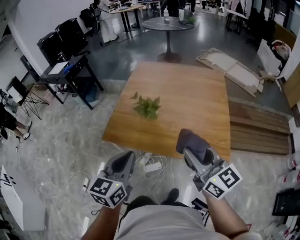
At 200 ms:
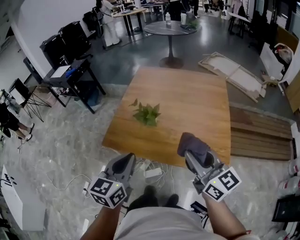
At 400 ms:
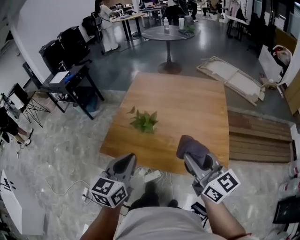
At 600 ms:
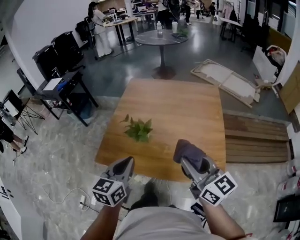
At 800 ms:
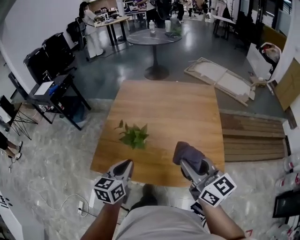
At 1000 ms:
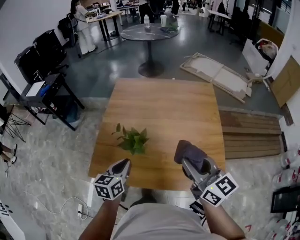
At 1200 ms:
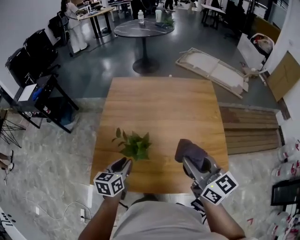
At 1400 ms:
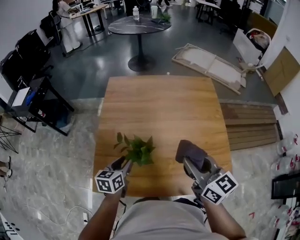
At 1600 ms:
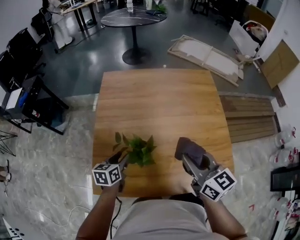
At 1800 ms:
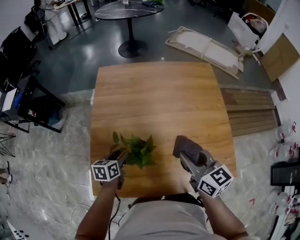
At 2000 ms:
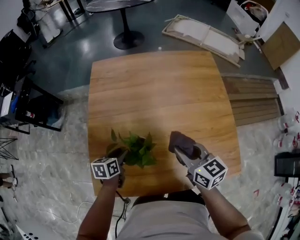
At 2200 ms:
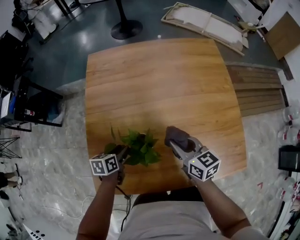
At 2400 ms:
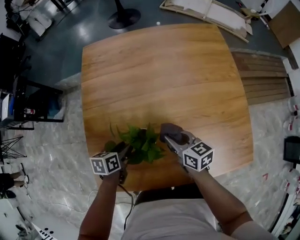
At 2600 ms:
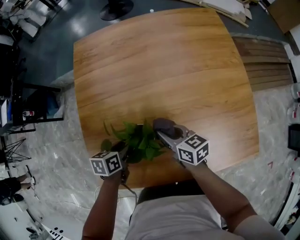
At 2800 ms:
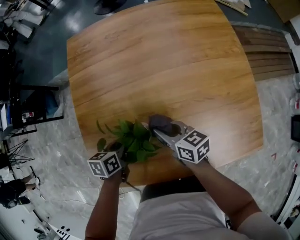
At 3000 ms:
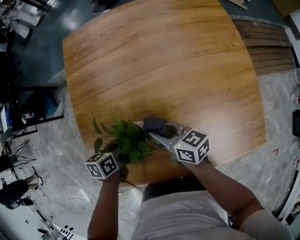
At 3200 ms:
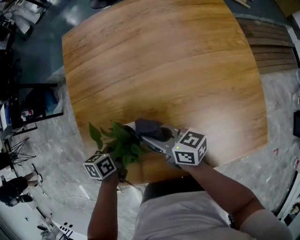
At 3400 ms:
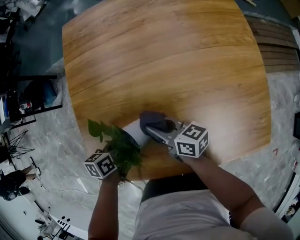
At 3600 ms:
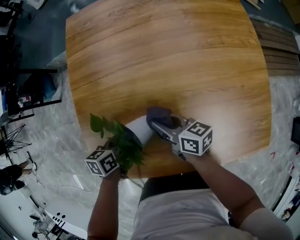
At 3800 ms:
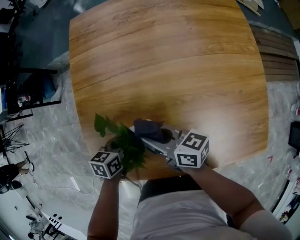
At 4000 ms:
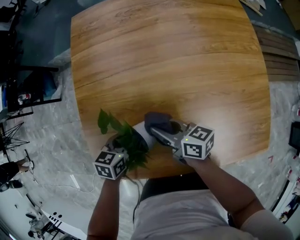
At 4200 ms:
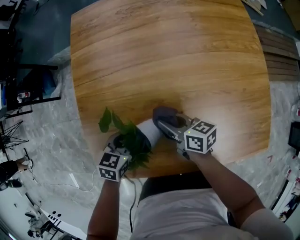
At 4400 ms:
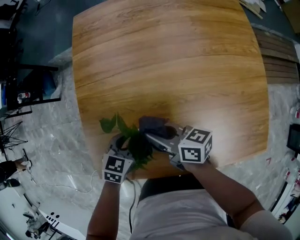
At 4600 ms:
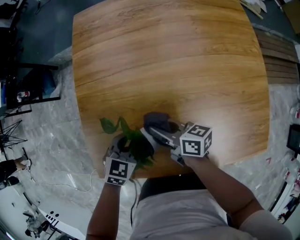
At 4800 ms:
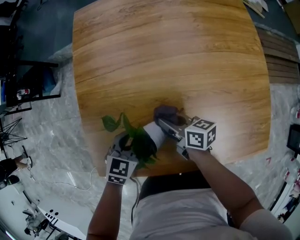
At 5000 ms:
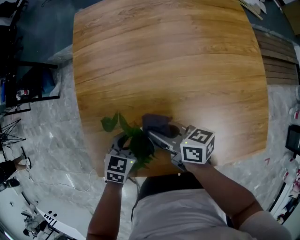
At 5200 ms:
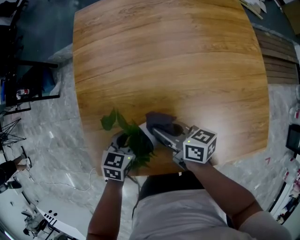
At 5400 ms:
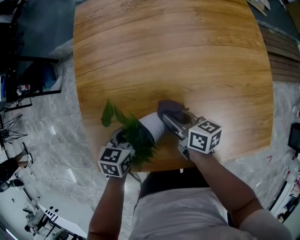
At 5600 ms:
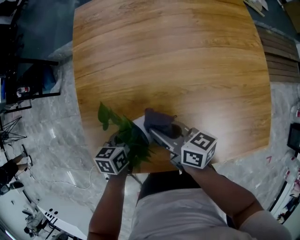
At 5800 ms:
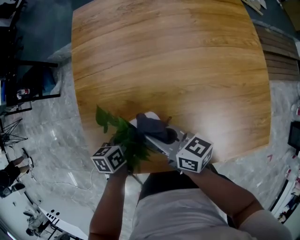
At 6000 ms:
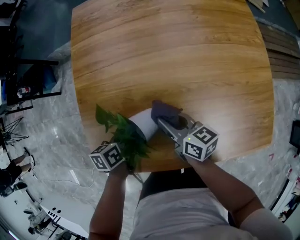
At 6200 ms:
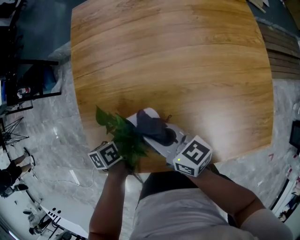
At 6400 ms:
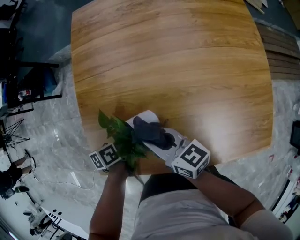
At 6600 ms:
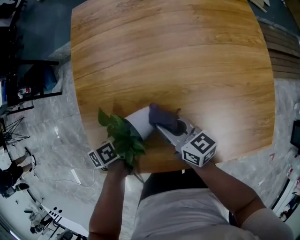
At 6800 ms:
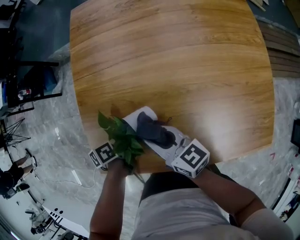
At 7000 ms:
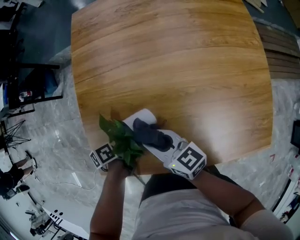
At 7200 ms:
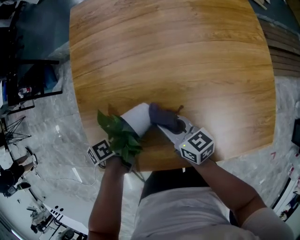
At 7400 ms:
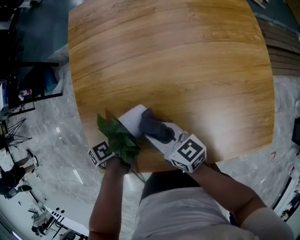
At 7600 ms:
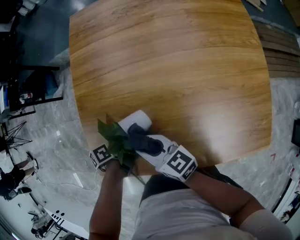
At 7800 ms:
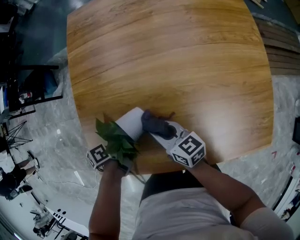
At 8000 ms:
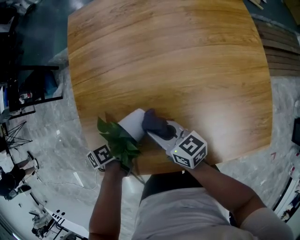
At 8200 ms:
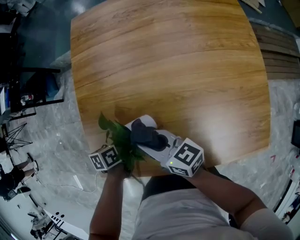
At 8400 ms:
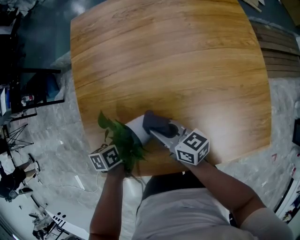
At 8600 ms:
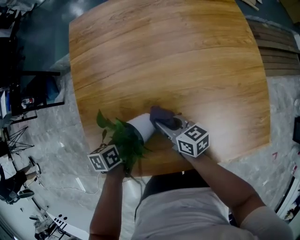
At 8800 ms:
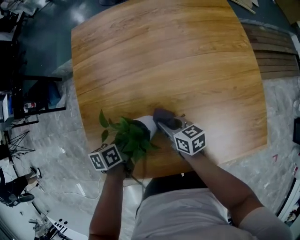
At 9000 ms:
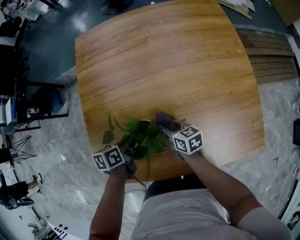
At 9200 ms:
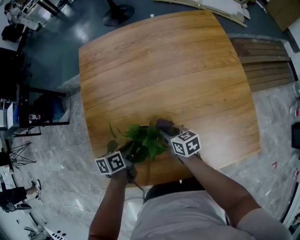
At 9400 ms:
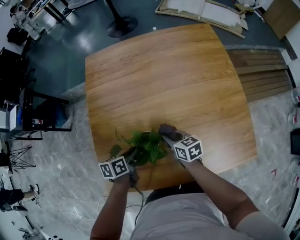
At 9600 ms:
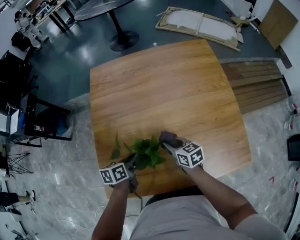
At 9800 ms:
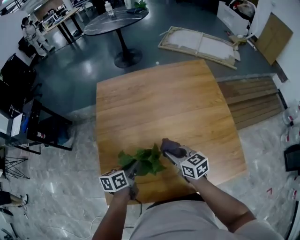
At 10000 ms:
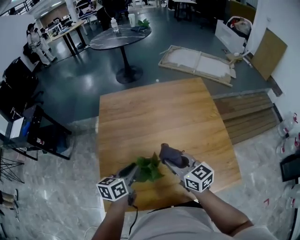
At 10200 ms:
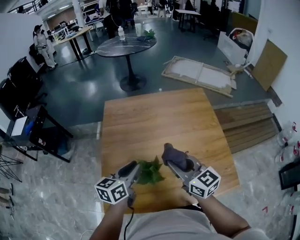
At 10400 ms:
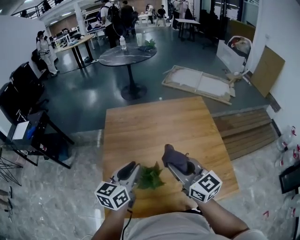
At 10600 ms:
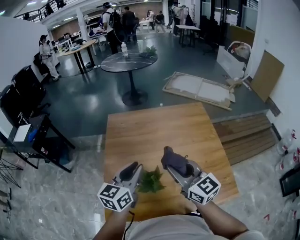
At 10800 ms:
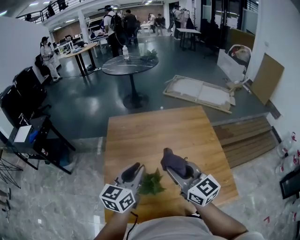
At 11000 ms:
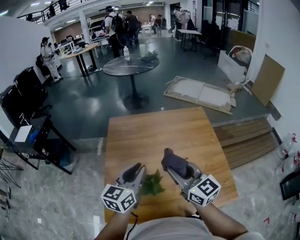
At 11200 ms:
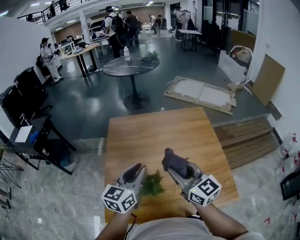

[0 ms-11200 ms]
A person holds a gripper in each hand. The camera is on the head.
0 ms to 1600 ms: The left gripper travels forward and downward by roughly 50 cm, rotates approximately 30 degrees, and opens, while the right gripper moves forward, some 35 cm, and turns by some 20 degrees.
1600 ms to 3200 ms: The right gripper travels downward by about 30 cm, and turns by approximately 40 degrees; the left gripper goes approximately 20 cm downward, turns by approximately 20 degrees, and closes its fingers.
3200 ms to 4800 ms: The left gripper rotates around the line of its fingers by roughly 40 degrees, clockwise from behind. Meanwhile the right gripper moves up and down over approximately 10 cm, changing direction 4 times.
4800 ms to 6400 ms: The right gripper swings up and down, roughly 10 cm each way, with 4 reversals, and changes its angle by approximately 20 degrees; the left gripper goes some 5 cm downward, and rotates around the line of its fingers by some 60 degrees, counterclockwise from behind.
6400 ms to 8000 ms: The right gripper swings up and down, roughly 5 cm each way, with 4 reversals.
8000 ms to 9600 ms: The left gripper heads upward, covering approximately 15 cm, and rotates about 30 degrees; the right gripper is displaced to the right and upward by some 10 cm.
9600 ms to 11200 ms: The two grippers go some 35 cm upward. The right gripper swivels approximately 40 degrees, while the left gripper tilts its fingers some 30 degrees upward.

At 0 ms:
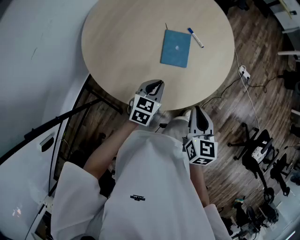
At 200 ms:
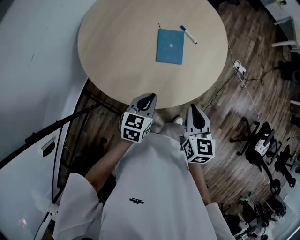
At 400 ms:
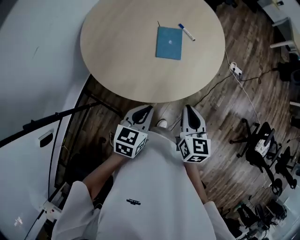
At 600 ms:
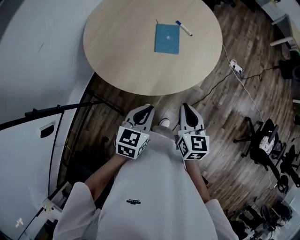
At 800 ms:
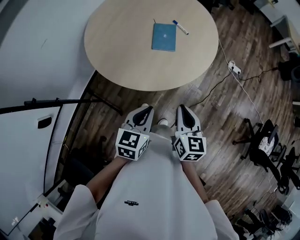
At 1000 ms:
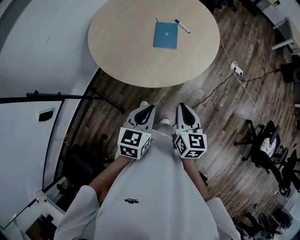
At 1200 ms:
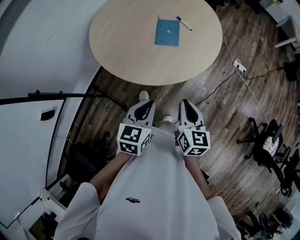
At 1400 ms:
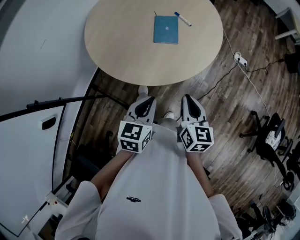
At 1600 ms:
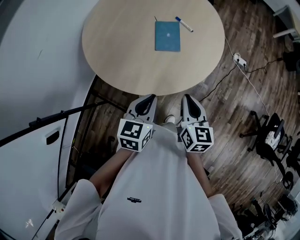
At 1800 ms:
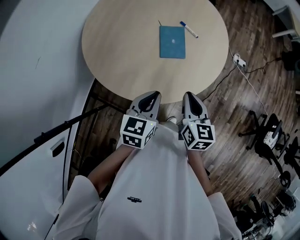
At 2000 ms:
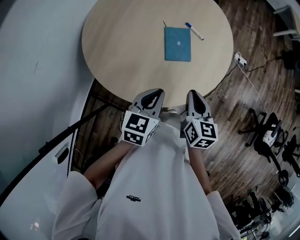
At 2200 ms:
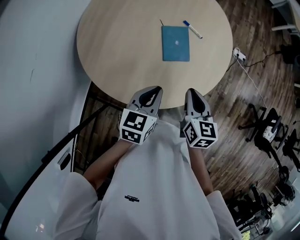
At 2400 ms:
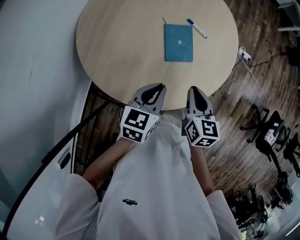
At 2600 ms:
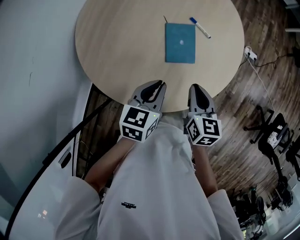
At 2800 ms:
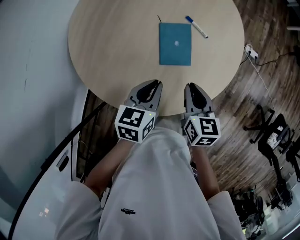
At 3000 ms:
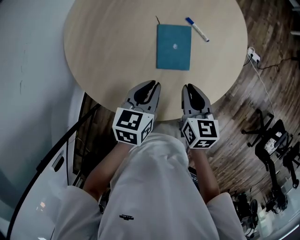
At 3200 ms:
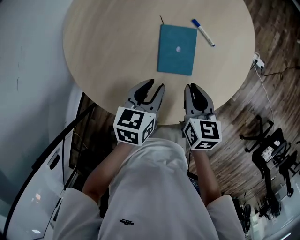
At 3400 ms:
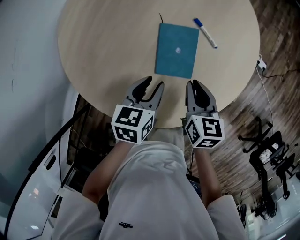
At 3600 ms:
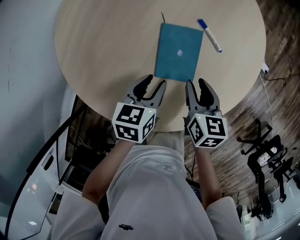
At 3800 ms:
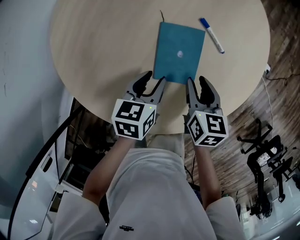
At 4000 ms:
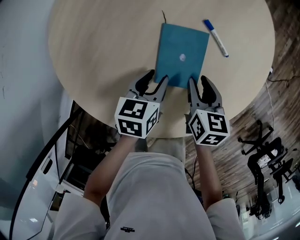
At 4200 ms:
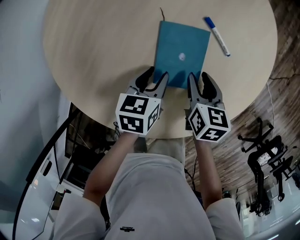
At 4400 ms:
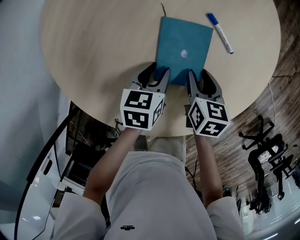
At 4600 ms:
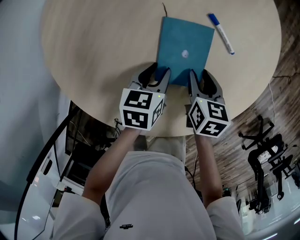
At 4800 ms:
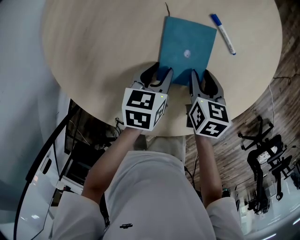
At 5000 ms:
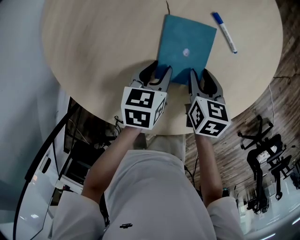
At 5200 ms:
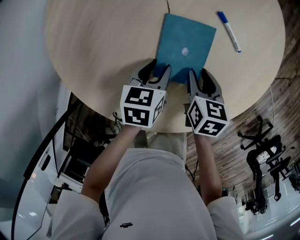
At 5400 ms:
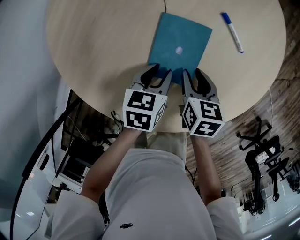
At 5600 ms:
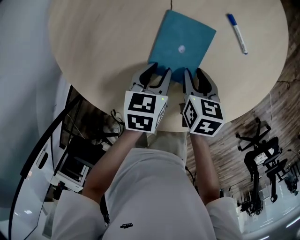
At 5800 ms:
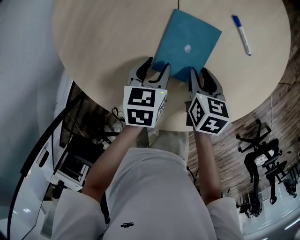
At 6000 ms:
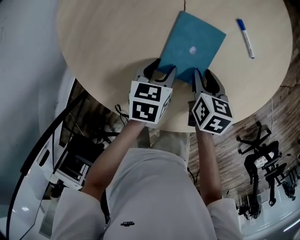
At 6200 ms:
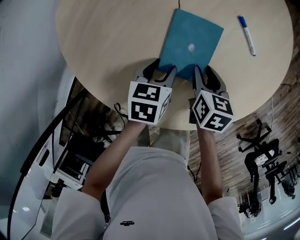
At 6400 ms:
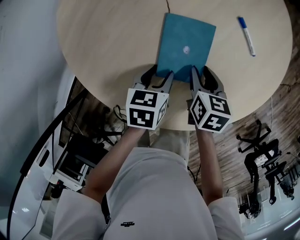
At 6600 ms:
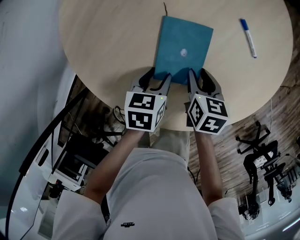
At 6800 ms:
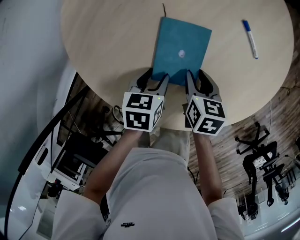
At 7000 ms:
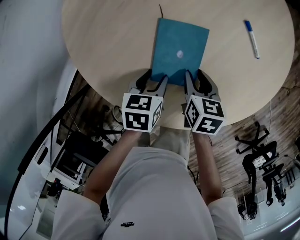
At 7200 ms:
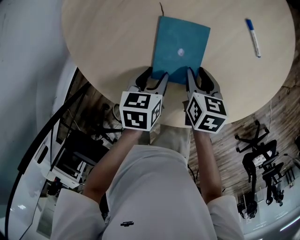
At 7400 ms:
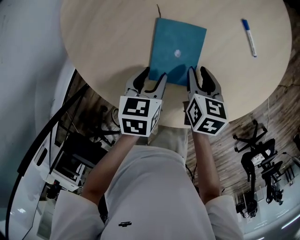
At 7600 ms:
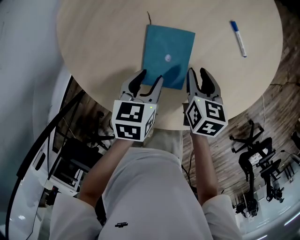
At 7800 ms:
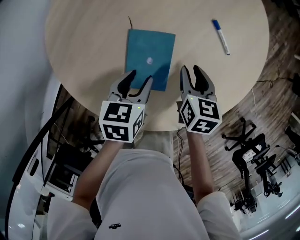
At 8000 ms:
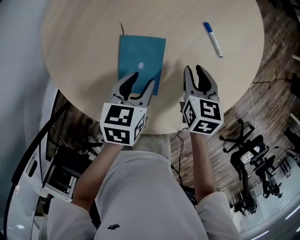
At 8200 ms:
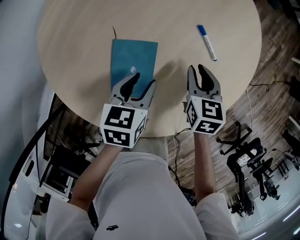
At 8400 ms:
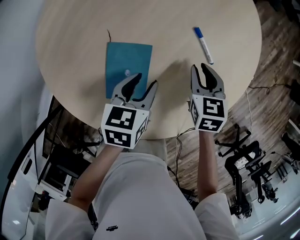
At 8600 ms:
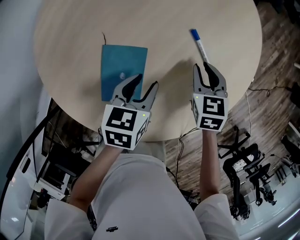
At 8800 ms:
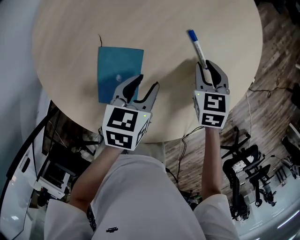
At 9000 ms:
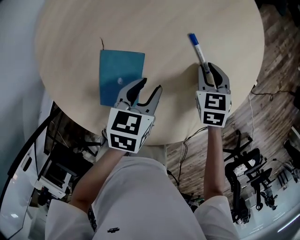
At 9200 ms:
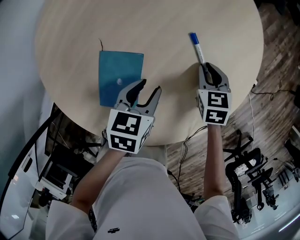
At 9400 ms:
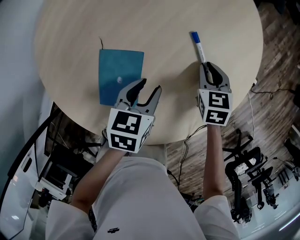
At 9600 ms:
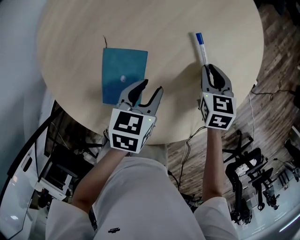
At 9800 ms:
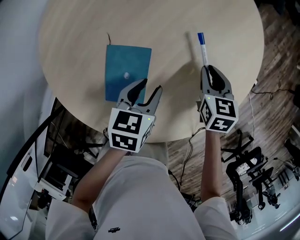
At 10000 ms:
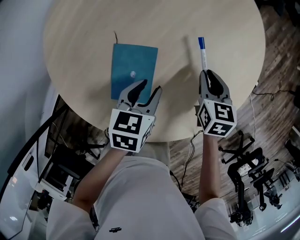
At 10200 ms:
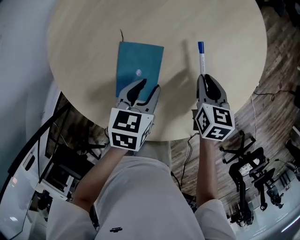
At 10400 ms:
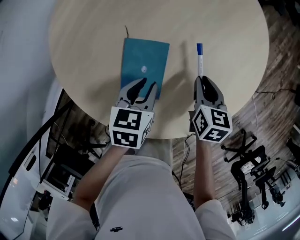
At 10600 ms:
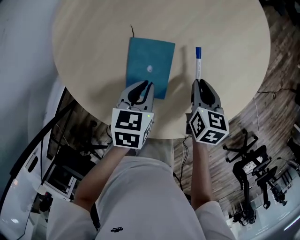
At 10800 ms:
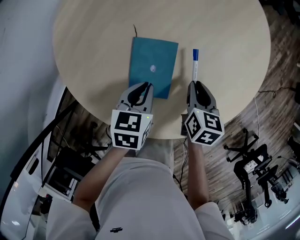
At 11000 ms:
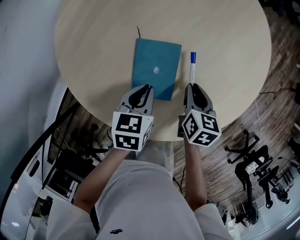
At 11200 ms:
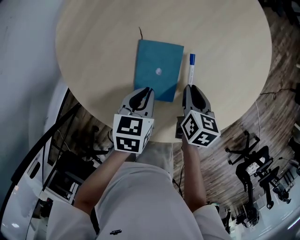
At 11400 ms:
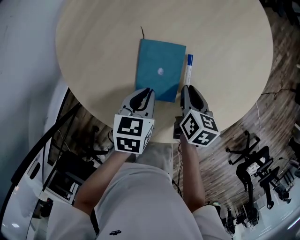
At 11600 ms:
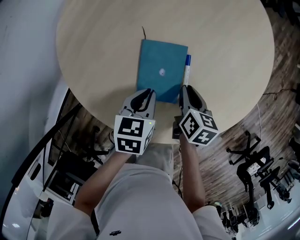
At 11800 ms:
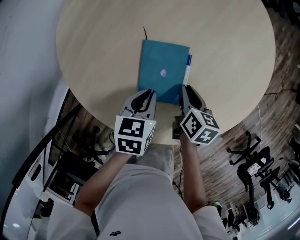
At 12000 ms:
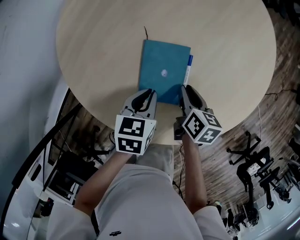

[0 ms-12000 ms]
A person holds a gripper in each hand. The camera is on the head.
0 ms to 1600 ms: The left gripper shifts approximately 20 cm backward and upward, while the right gripper moves backward, approximately 10 cm.
1600 ms to 3000 ms: The grippers both shift forward and downward by approximately 25 cm.
3000 ms to 4400 ms: Both grippers travel together downward and forward, about 20 cm. The right gripper opens its fingers, while the left gripper opens up.
4400 ms to 6000 ms: Both grippers travel together to the left, about 5 cm.
6000 ms to 7600 ms: The left gripper shifts approximately 5 cm upward.
7600 ms to 9000 ms: The right gripper moves forward and to the right, approximately 20 cm, and turns by some 30 degrees, while the left gripper is displaced to the right and forward by about 20 cm.
9000 ms to 10400 ms: The left gripper goes approximately 10 cm to the left and backward. The right gripper heads backward and to the left, covering roughly 10 cm, and changes its angle by roughly 30 degrees.
10400 ms to 12000 ms: The right gripper heads to the left and backward, covering roughly 10 cm, and changes its angle by roughly 20 degrees, while the left gripper goes approximately 5 cm to the left.
